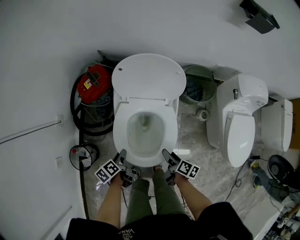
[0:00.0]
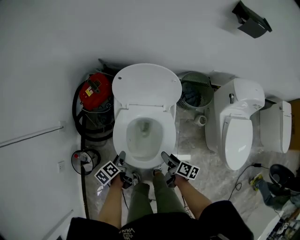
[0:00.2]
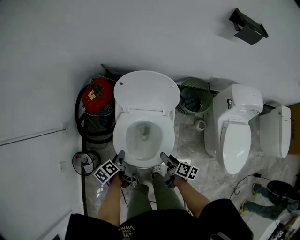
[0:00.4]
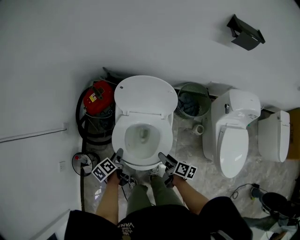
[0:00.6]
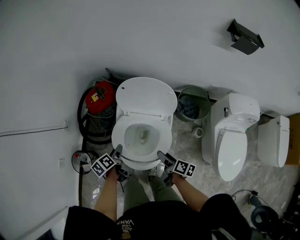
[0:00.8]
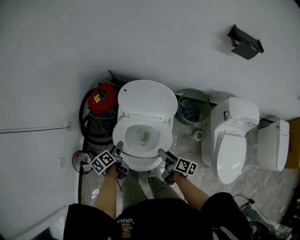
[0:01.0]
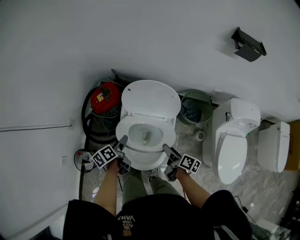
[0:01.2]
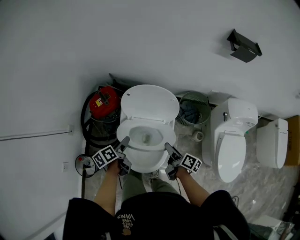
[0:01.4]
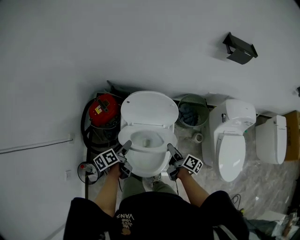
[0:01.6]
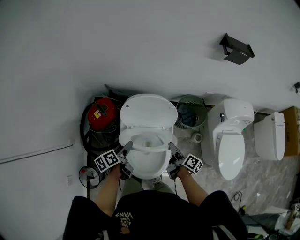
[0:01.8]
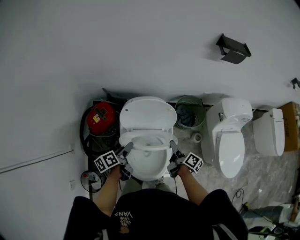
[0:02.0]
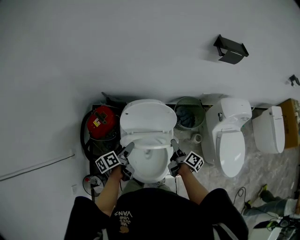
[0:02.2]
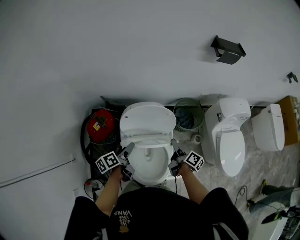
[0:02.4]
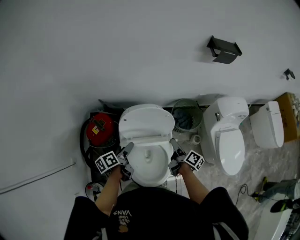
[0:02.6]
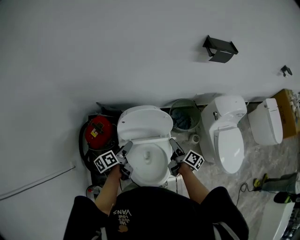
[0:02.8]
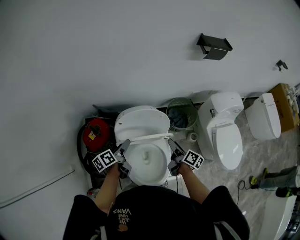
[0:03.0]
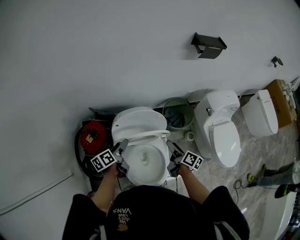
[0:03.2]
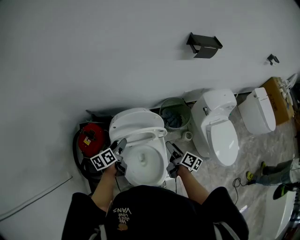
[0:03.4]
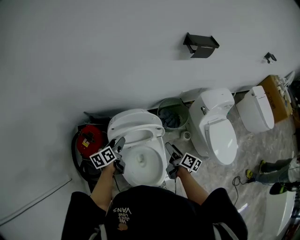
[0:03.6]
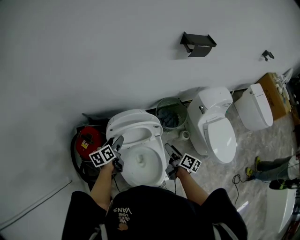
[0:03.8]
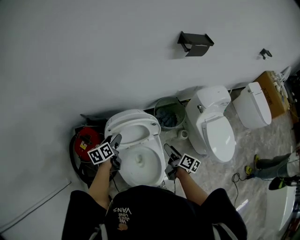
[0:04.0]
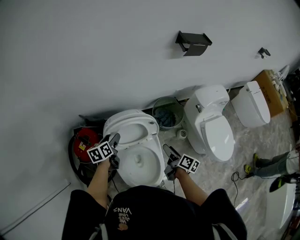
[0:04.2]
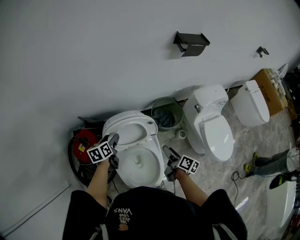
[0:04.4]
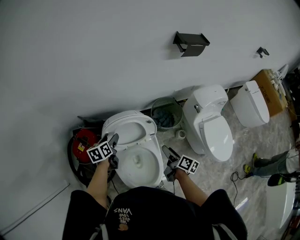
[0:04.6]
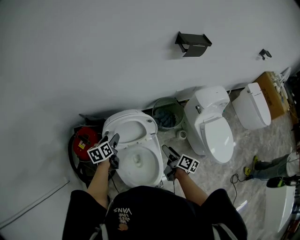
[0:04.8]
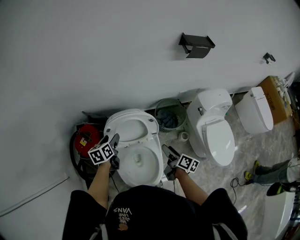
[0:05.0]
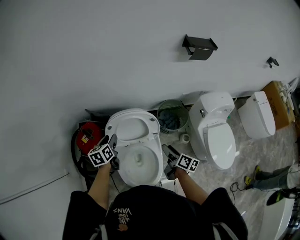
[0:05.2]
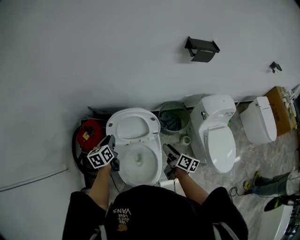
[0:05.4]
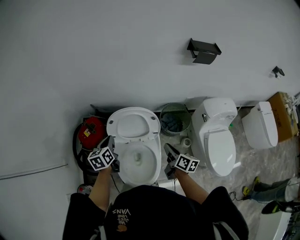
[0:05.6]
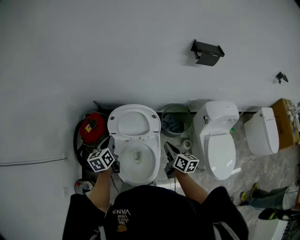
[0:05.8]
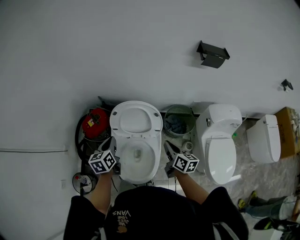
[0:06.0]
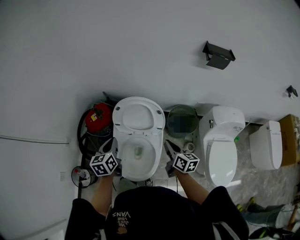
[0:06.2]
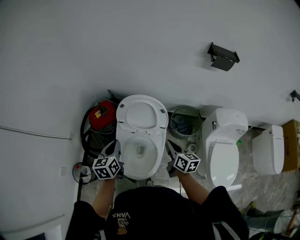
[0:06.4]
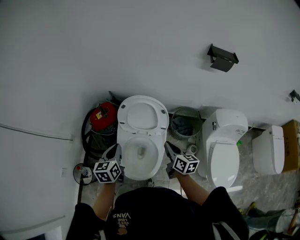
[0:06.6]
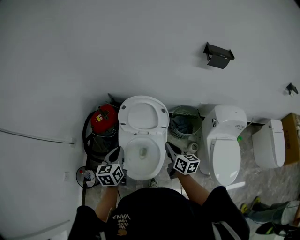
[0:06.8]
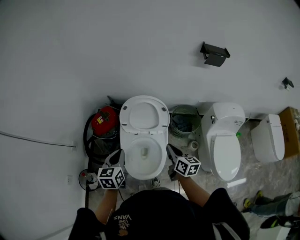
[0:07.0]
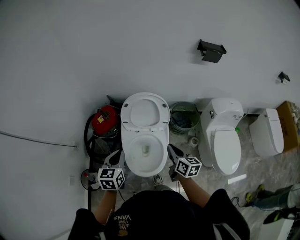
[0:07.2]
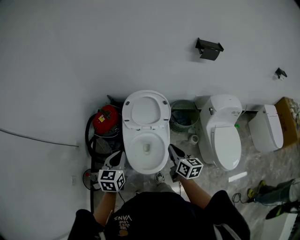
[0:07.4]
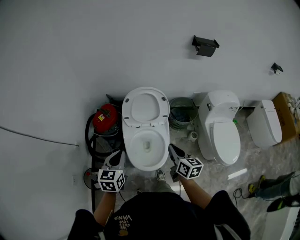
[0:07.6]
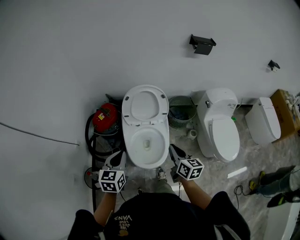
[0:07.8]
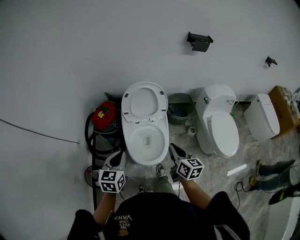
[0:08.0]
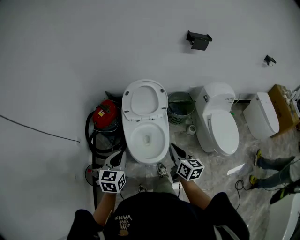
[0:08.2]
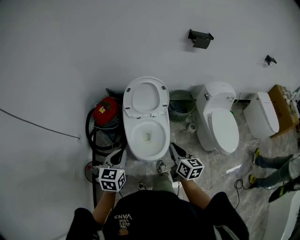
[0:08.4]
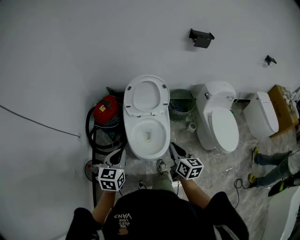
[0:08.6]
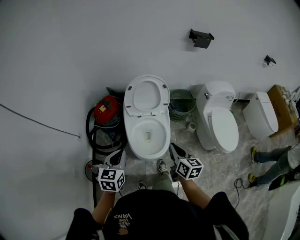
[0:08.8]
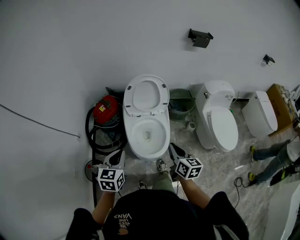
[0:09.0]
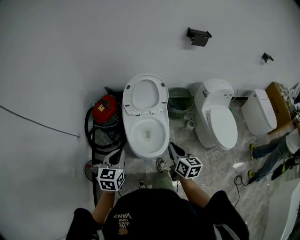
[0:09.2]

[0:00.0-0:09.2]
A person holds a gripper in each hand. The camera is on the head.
0:00.0 to 0:01.6: Both grippers travel together upward and forward, approximately 20 cm.
0:01.6 to 0:03.0: The right gripper moves forward and upward, about 10 cm; the left gripper is displaced forward by approximately 10 cm.
0:03.0 to 0:04.6: The left gripper heads forward, covering some 10 cm, and turns by about 30 degrees.
0:04.6 to 0:06.2: The right gripper heads upward, covering approximately 5 cm, changes its angle by approximately 40 degrees, and closes up. Meanwhile the left gripper moves approximately 20 cm, swivels approximately 30 degrees, and closes.
0:06.2 to 0:07.6: The right gripper heads backward and to the left, covering some 20 cm. Meanwhile the left gripper travels backward by some 15 cm, and rotates approximately 20 degrees.
0:07.6 to 0:09.2: The two grippers go roughly 10 cm backward.

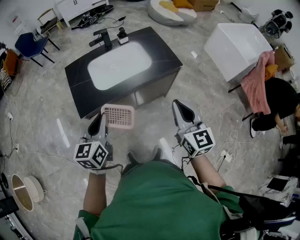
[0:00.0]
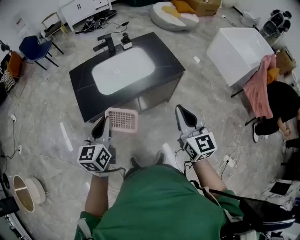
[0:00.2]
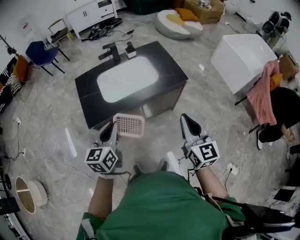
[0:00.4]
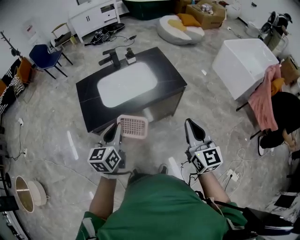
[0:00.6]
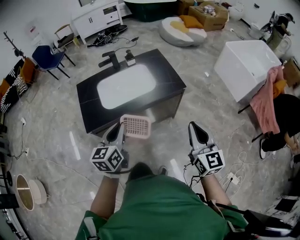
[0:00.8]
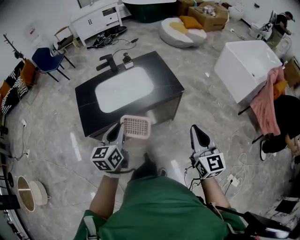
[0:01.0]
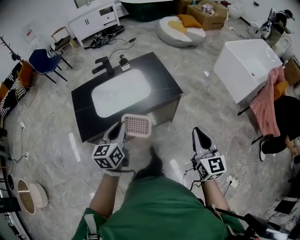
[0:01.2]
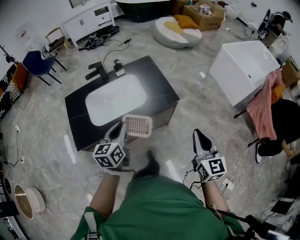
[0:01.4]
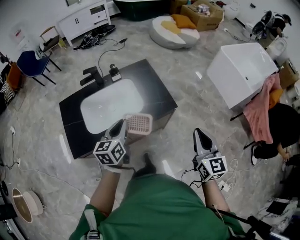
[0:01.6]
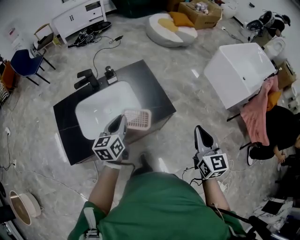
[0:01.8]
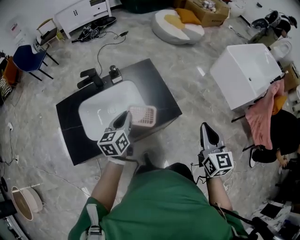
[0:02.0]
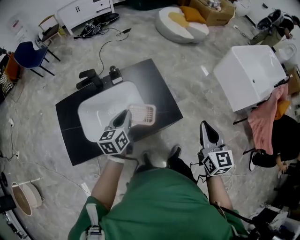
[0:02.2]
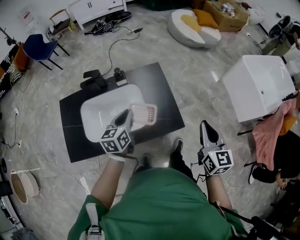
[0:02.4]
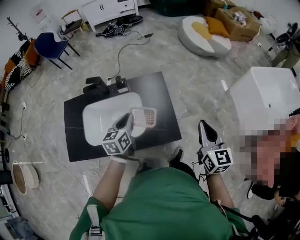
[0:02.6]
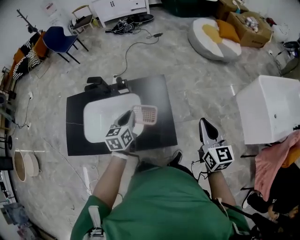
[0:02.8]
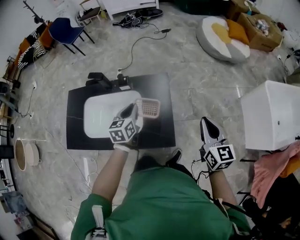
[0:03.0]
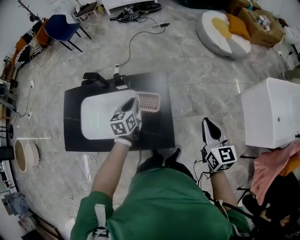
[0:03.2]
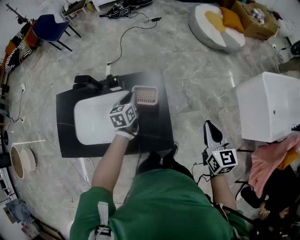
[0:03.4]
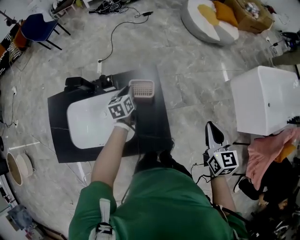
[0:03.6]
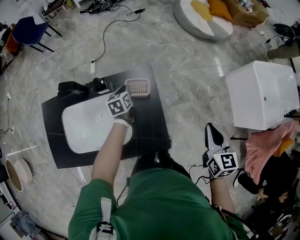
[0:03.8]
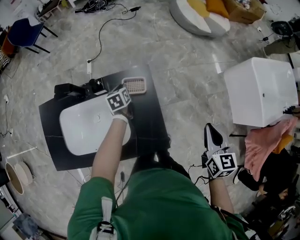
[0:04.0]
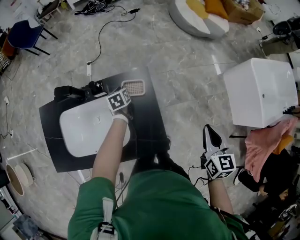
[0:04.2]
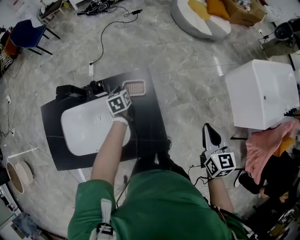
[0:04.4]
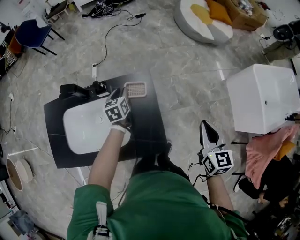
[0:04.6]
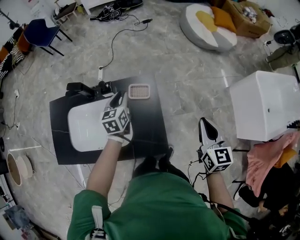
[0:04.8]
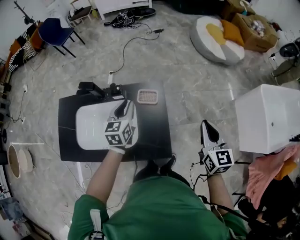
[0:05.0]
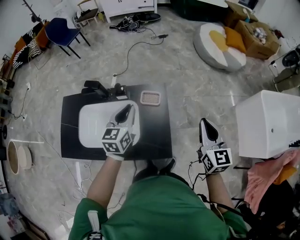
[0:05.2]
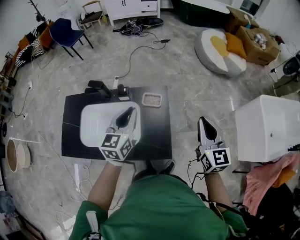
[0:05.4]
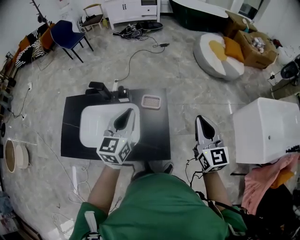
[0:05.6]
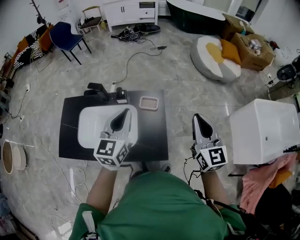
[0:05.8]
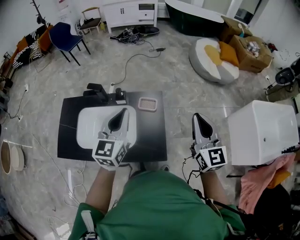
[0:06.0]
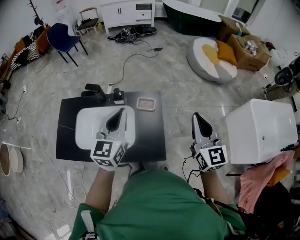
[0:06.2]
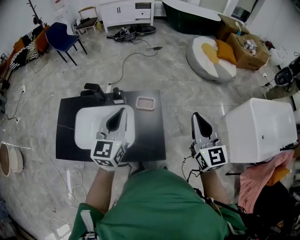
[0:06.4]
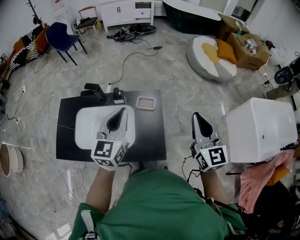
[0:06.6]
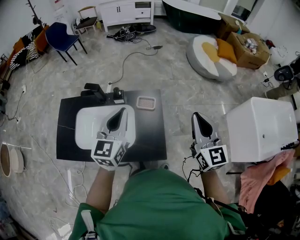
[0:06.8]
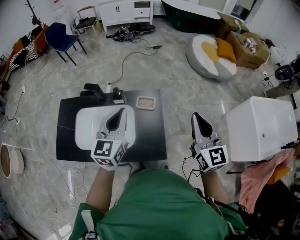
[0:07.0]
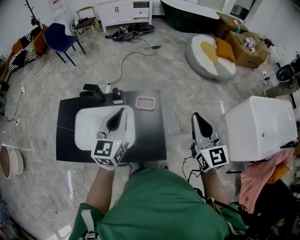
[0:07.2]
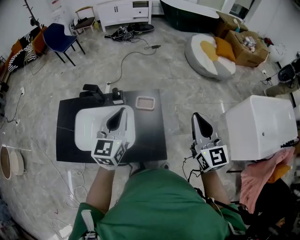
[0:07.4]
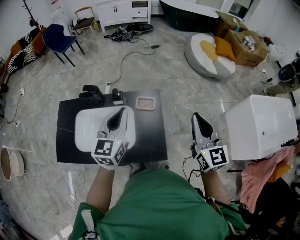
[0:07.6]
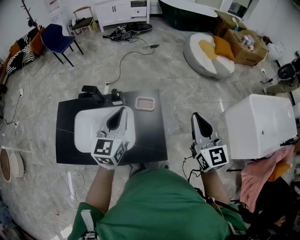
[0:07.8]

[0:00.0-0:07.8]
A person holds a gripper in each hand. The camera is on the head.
0:00.0 to 0:01.6: The right gripper goes some 25 cm to the right and forward. Meanwhile the left gripper heads forward and to the right, covering roughly 30 cm.
0:01.6 to 0:03.2: The right gripper shifts by roughly 50 cm, and rotates roughly 20 degrees. The left gripper ends up some 40 cm from where it was, and turns by about 20 degrees.
0:03.2 to 0:04.6: The left gripper travels forward and downward by roughly 15 cm.
0:04.6 to 0:06.2: The right gripper is displaced upward and to the left by some 20 cm, and swivels about 30 degrees. The left gripper moves upward and backward, roughly 35 cm, angles its fingers upward, by approximately 30 degrees, and closes.
0:06.2 to 0:07.8: There are only small adjustments of the grippers.

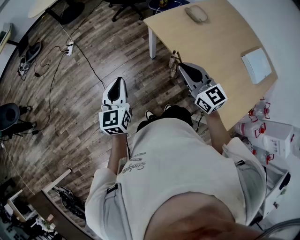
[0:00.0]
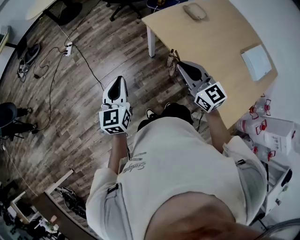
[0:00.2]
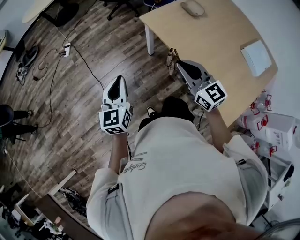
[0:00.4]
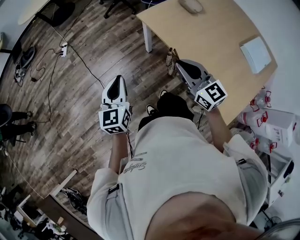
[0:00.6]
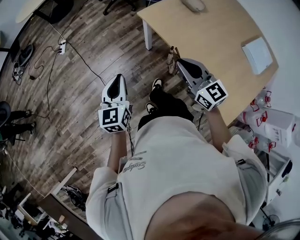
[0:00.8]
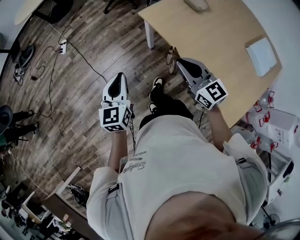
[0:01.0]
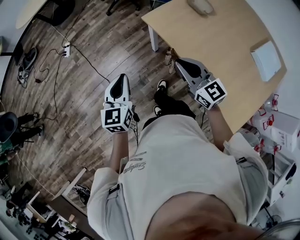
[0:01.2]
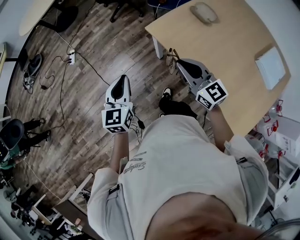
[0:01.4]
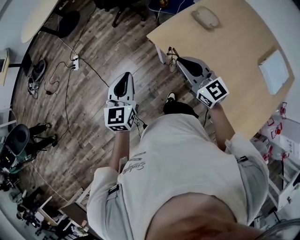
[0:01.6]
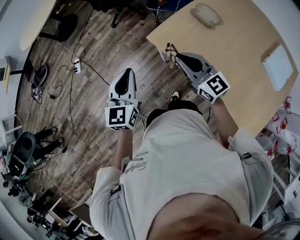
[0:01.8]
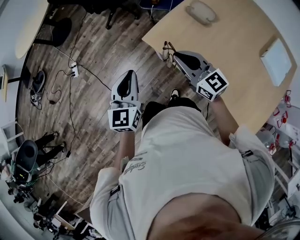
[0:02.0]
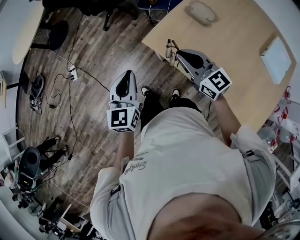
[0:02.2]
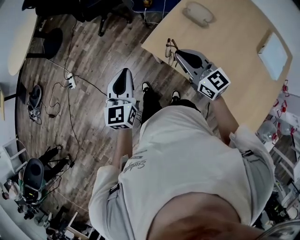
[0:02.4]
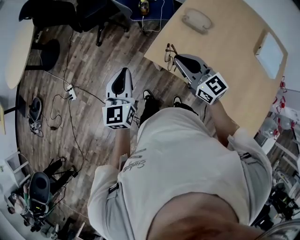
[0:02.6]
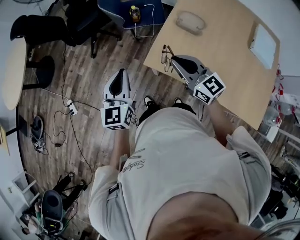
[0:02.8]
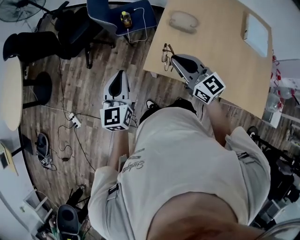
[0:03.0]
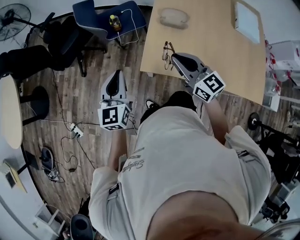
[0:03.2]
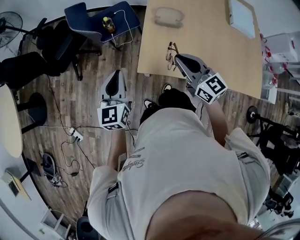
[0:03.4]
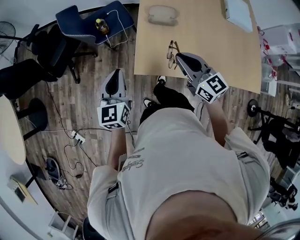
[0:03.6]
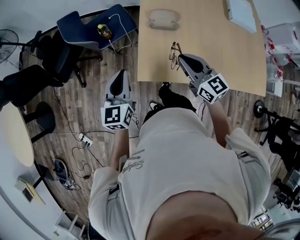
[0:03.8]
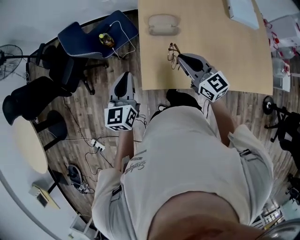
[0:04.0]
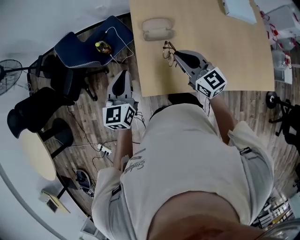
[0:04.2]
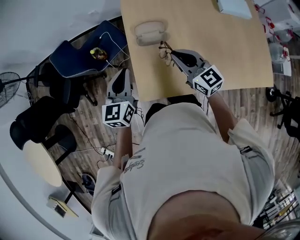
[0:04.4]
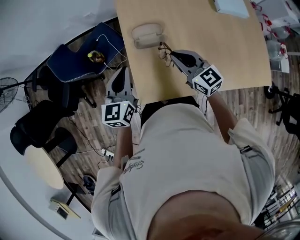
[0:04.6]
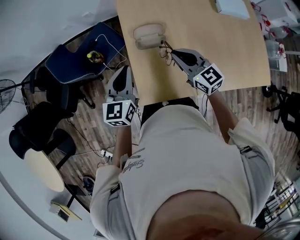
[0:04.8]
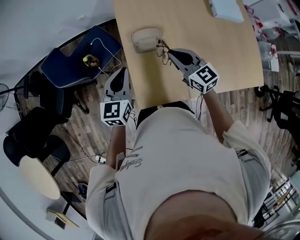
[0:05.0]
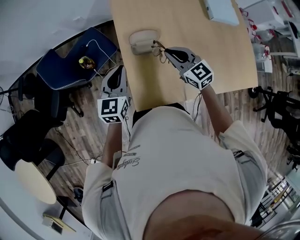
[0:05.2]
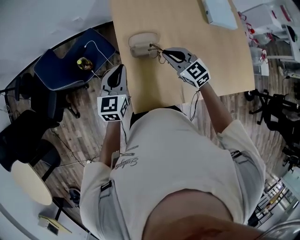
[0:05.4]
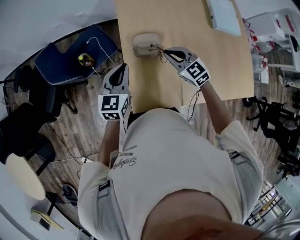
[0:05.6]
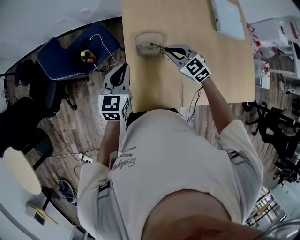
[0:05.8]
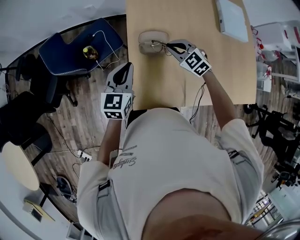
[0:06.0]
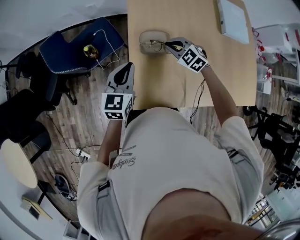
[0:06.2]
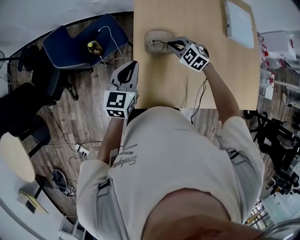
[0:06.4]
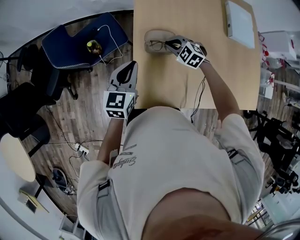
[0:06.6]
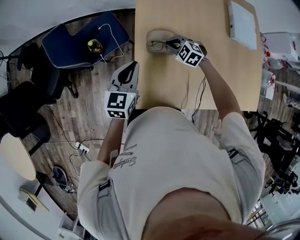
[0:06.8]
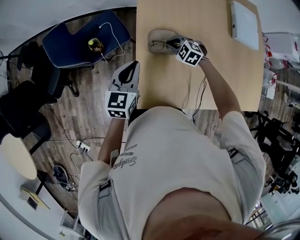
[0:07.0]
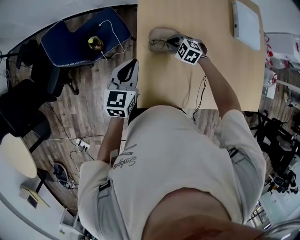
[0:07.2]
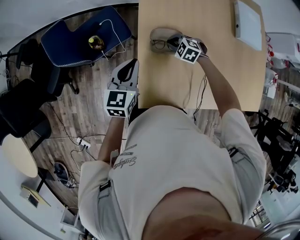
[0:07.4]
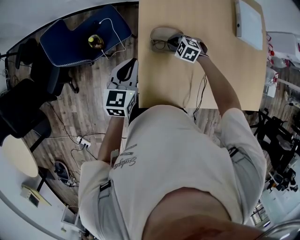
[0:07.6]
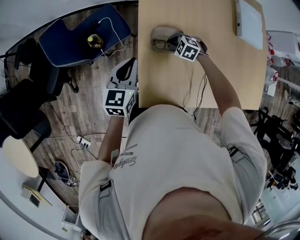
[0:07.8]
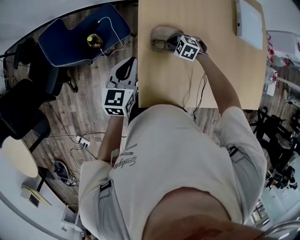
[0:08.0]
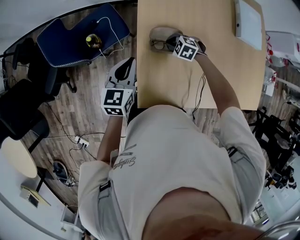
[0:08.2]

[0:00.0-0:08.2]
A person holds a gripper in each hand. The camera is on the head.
0:00.0 to 0:01.6: The grippers both shift forward by roughly 25 cm.
0:01.6 to 0:03.2: The right gripper moves approximately 20 cm, and turns by roughly 40 degrees; the left gripper changes place by about 30 cm, and rotates approximately 30 degrees.
0:03.2 to 0:05.0: Both grippers travel together forward and to the right, approximately 25 cm. The left gripper rotates roughly 30 degrees, while the right gripper rotates approximately 20 degrees.
0:05.0 to 0:06.6: The right gripper shifts approximately 15 cm downward and forward, and tilts its fingers roughly 40 degrees downward.
0:06.6 to 0:08.2: The left gripper moves about 5 cm. The right gripper is displaced downward by some 10 cm.
